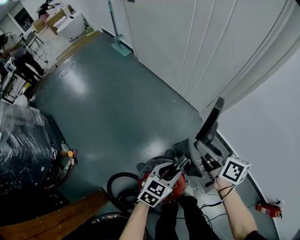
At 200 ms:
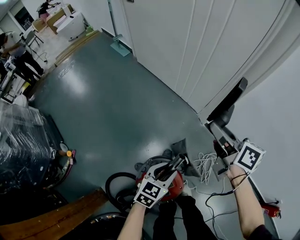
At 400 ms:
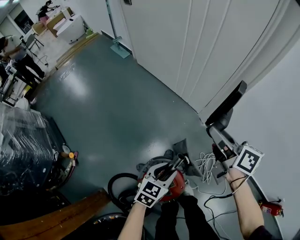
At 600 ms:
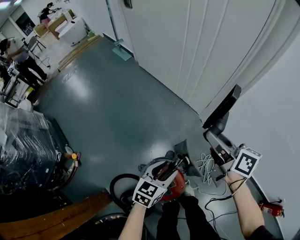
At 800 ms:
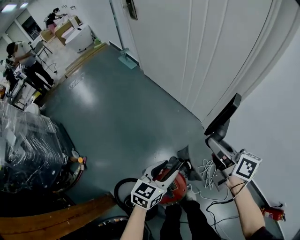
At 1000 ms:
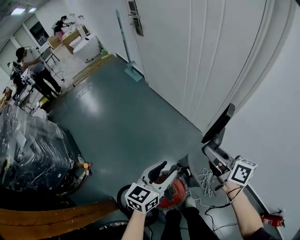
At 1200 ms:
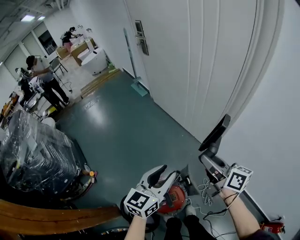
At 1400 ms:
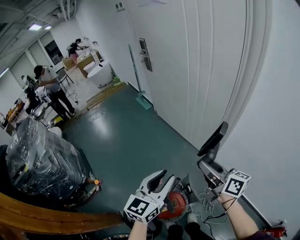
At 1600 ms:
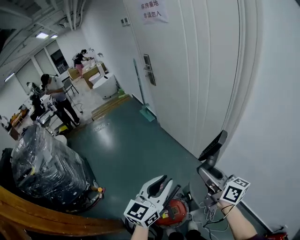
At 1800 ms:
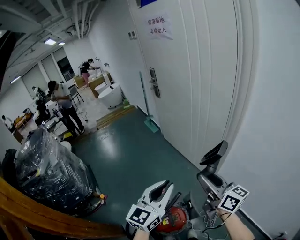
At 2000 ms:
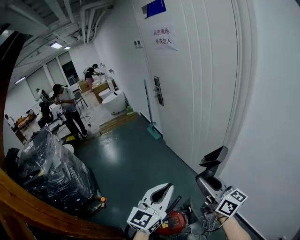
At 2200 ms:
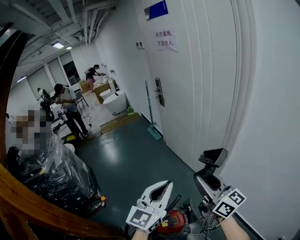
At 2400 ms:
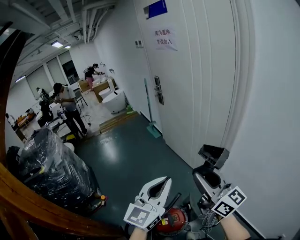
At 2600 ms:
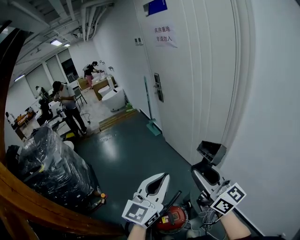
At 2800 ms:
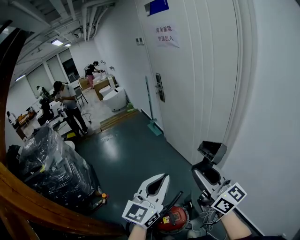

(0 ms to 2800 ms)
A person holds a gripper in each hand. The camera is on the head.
0 ms - 1400 ms: The two grippers go roughly 35 cm upward. The left gripper changes its angle by some 30 degrees.
1400 ms - 2800 ms: The right gripper shifts some 20 cm upward and backward, and changes its angle by roughly 30 degrees; the left gripper is displaced upward by approximately 15 cm, and closes its fingers.

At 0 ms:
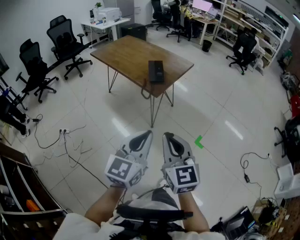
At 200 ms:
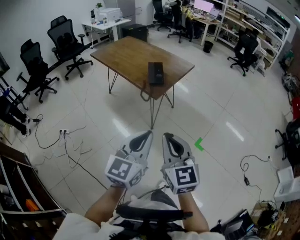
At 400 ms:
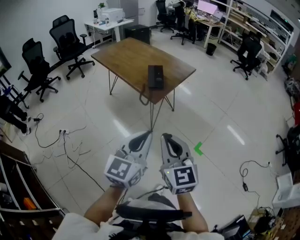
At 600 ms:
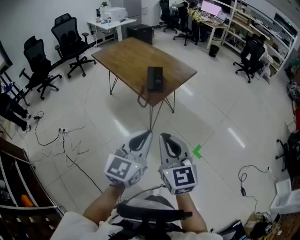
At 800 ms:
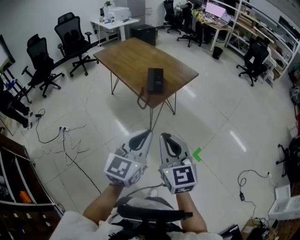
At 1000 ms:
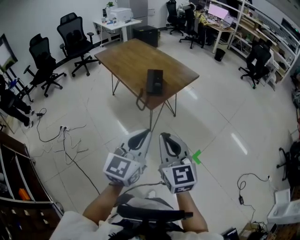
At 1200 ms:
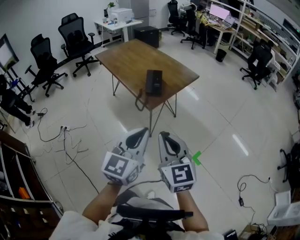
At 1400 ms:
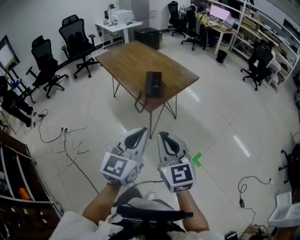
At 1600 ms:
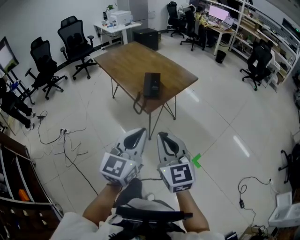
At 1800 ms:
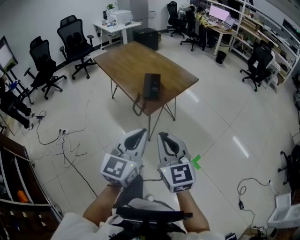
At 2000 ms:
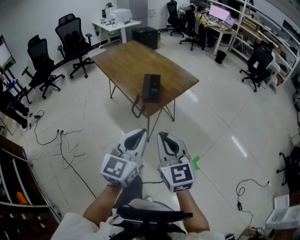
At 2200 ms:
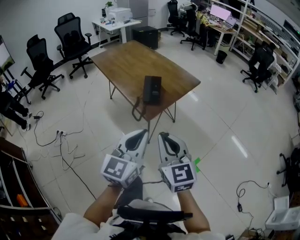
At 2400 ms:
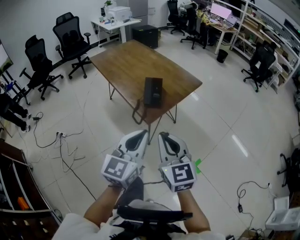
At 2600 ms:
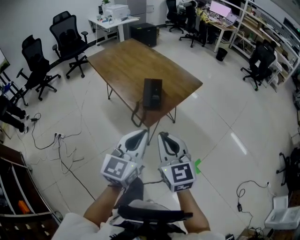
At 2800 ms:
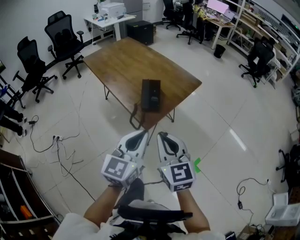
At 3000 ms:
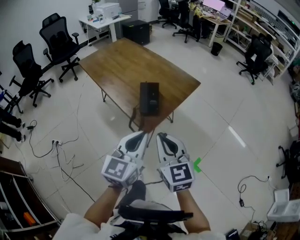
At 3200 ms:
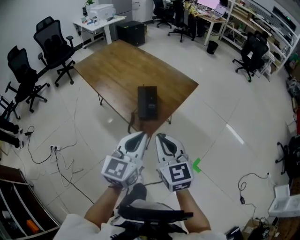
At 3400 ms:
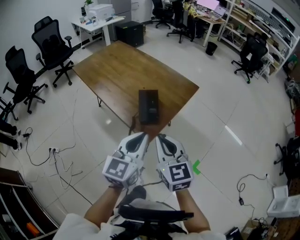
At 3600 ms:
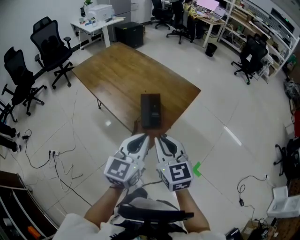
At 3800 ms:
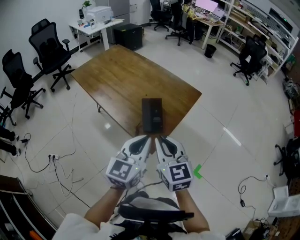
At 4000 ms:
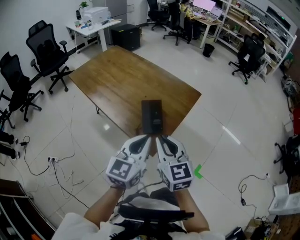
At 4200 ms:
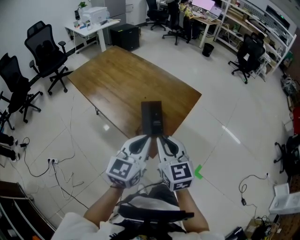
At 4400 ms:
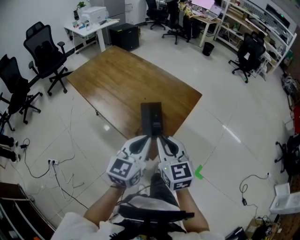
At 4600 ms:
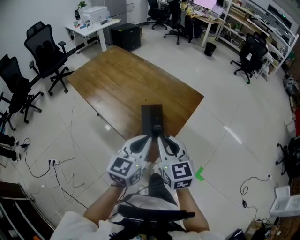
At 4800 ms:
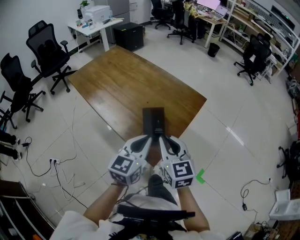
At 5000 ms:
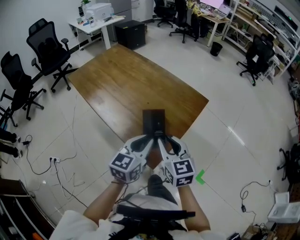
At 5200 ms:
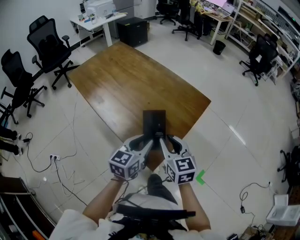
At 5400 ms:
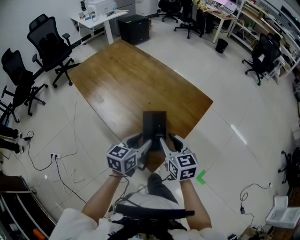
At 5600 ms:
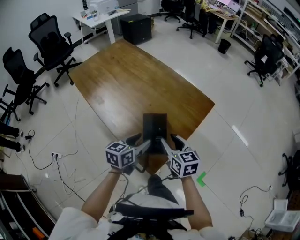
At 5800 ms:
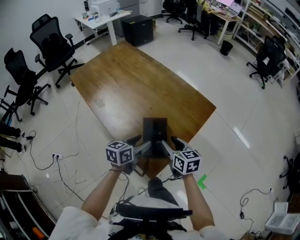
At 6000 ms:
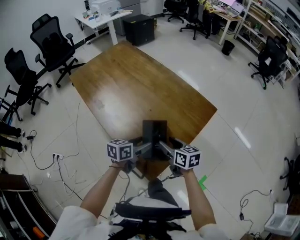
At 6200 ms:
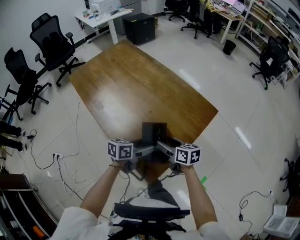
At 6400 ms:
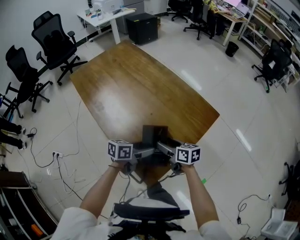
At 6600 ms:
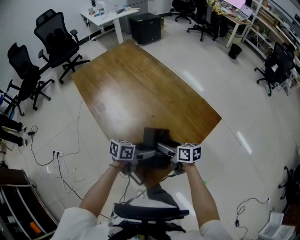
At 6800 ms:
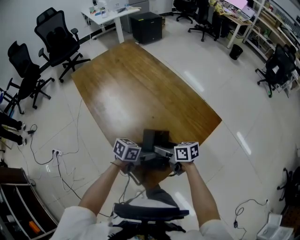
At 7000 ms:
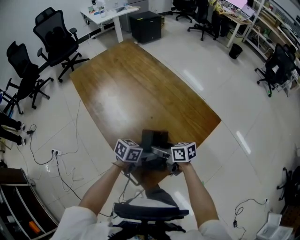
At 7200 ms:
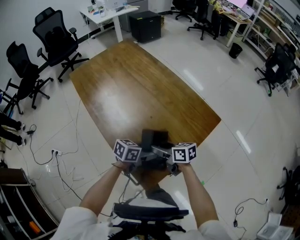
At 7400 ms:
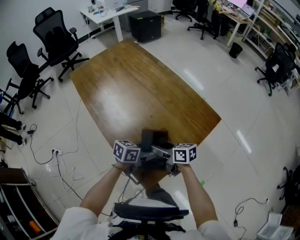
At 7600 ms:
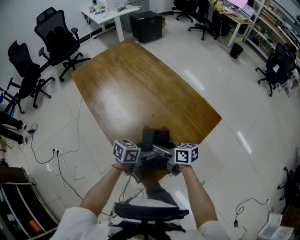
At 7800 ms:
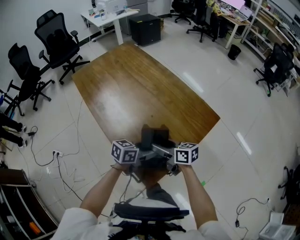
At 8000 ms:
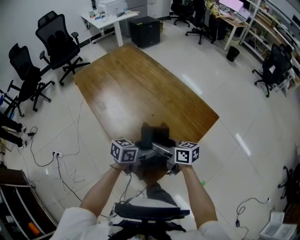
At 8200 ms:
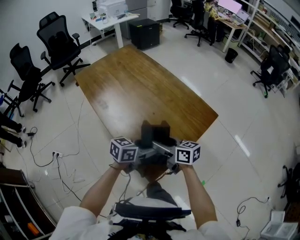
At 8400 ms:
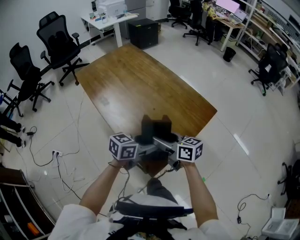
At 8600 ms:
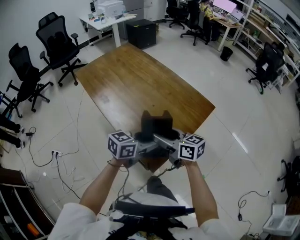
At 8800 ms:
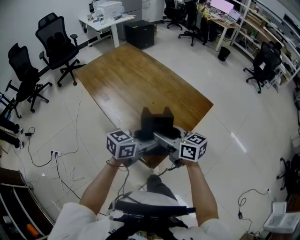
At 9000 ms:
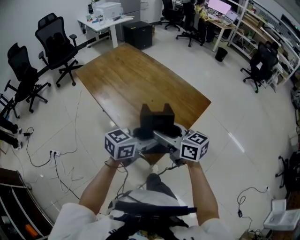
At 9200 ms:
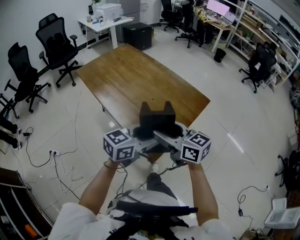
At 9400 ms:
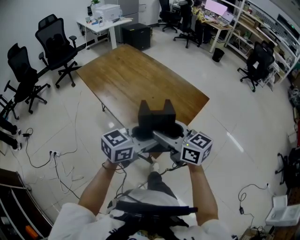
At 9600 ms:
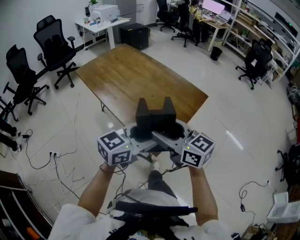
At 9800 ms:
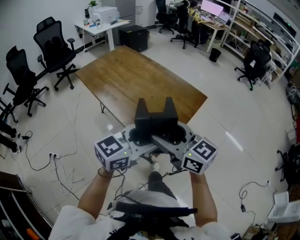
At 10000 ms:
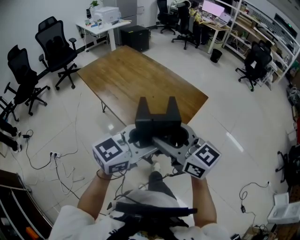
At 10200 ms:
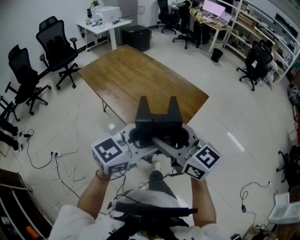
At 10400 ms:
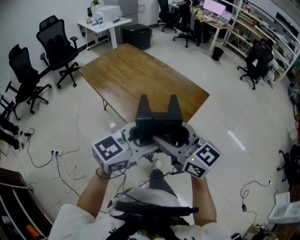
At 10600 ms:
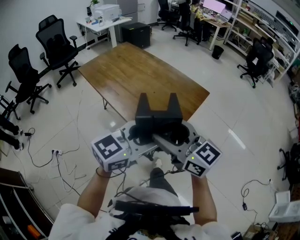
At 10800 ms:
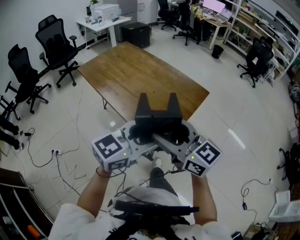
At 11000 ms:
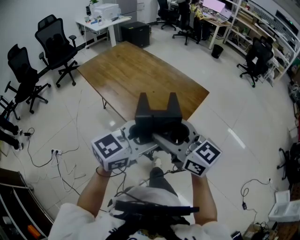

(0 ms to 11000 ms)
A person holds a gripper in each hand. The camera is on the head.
0 ms - 1600 ms: Both grippers move forward and to the right, roughly 15 cm.
1600 ms - 3200 ms: The grippers both shift forward by some 20 cm.
3200 ms - 4800 ms: Both grippers travel together forward, about 15 cm.
4800 ms - 6200 ms: Both grippers move downward and forward, some 20 cm. The left gripper changes its angle by some 40 degrees, and opens up. The right gripper rotates roughly 40 degrees, and opens its fingers.
6200 ms - 7800 ms: The right gripper ends up some 5 cm from where it was.
7800 ms - 9400 ms: Both grippers travel together upward and backward, about 25 cm. The left gripper rotates about 30 degrees, while the right gripper turns by approximately 30 degrees.
9400 ms - 11000 ms: The right gripper goes approximately 10 cm upward and backward; the left gripper is displaced backward and upward by some 10 cm.

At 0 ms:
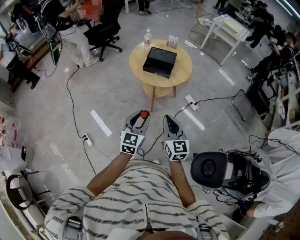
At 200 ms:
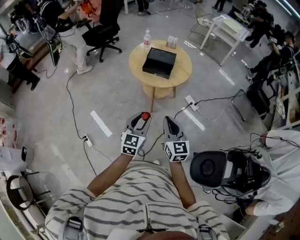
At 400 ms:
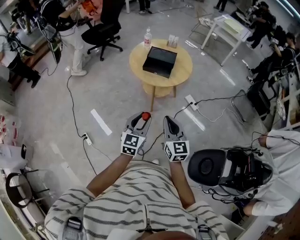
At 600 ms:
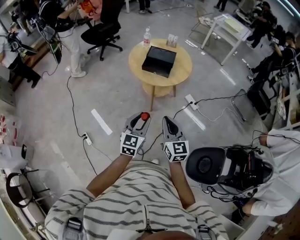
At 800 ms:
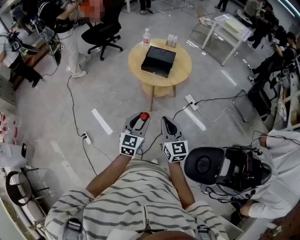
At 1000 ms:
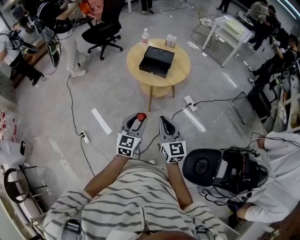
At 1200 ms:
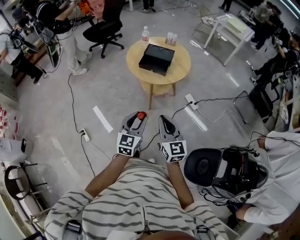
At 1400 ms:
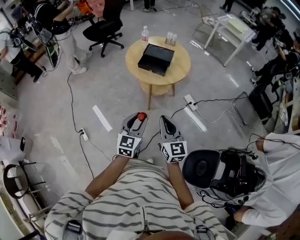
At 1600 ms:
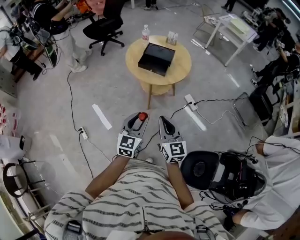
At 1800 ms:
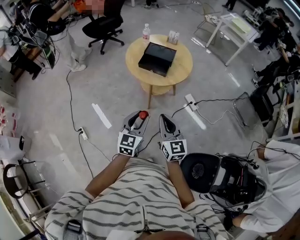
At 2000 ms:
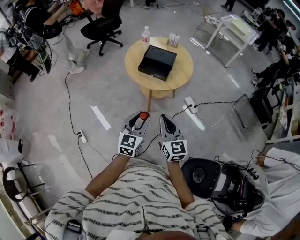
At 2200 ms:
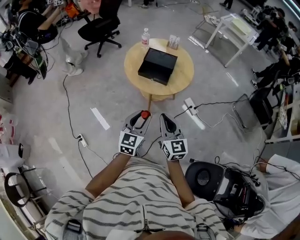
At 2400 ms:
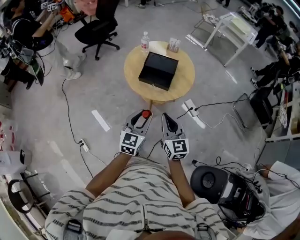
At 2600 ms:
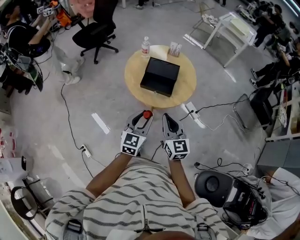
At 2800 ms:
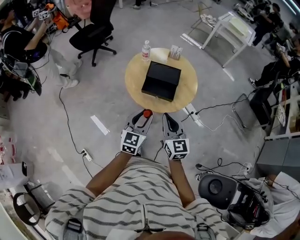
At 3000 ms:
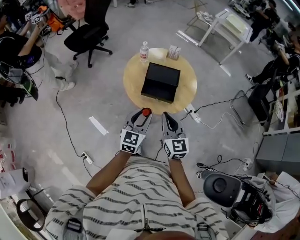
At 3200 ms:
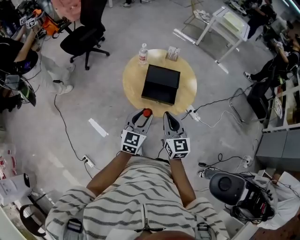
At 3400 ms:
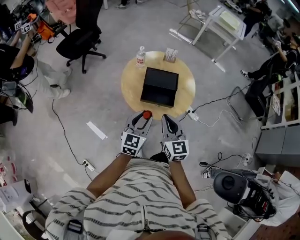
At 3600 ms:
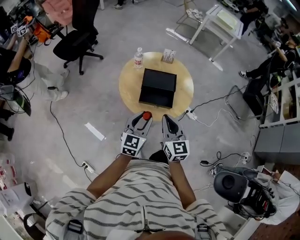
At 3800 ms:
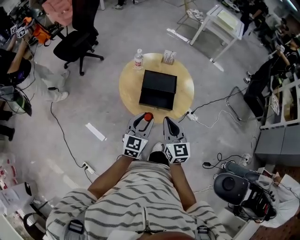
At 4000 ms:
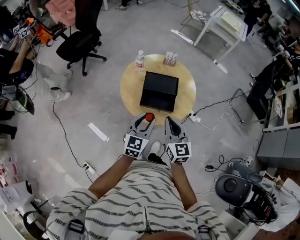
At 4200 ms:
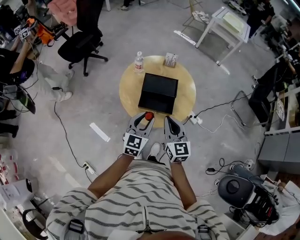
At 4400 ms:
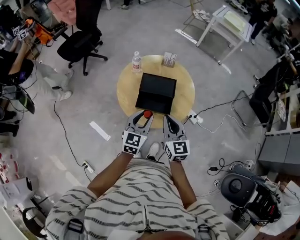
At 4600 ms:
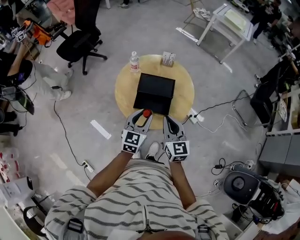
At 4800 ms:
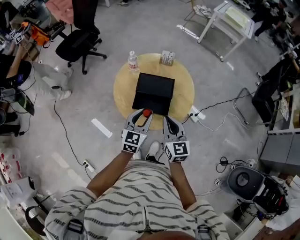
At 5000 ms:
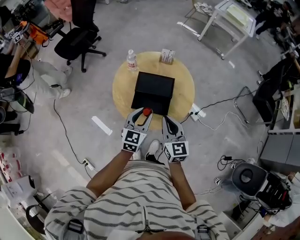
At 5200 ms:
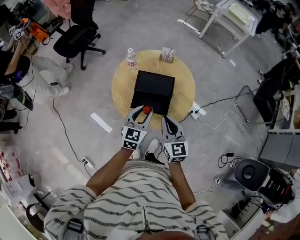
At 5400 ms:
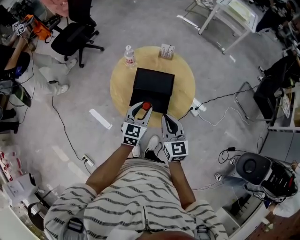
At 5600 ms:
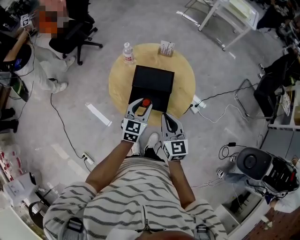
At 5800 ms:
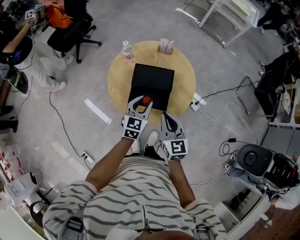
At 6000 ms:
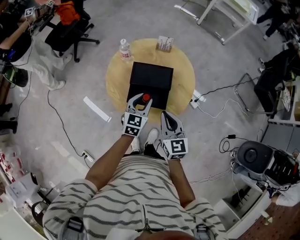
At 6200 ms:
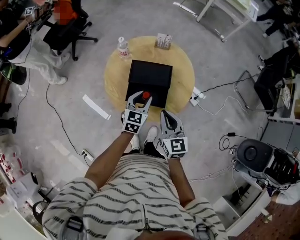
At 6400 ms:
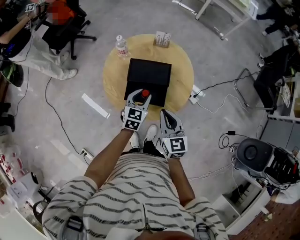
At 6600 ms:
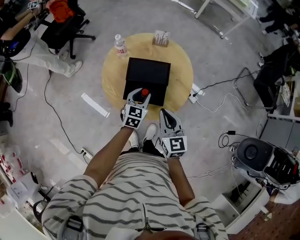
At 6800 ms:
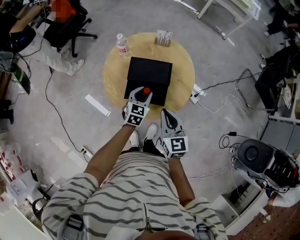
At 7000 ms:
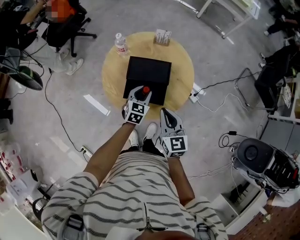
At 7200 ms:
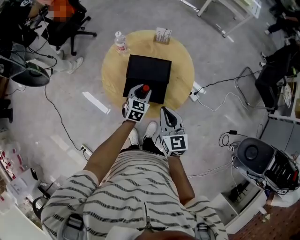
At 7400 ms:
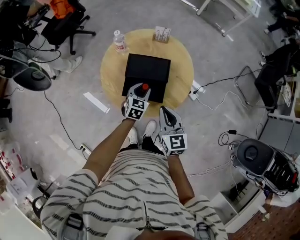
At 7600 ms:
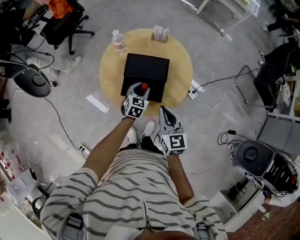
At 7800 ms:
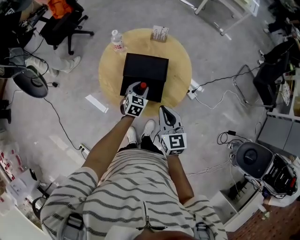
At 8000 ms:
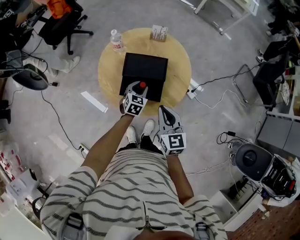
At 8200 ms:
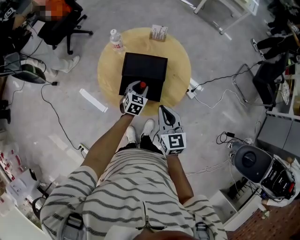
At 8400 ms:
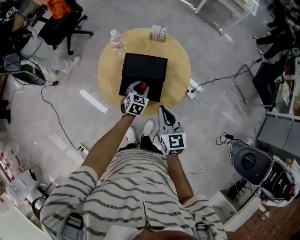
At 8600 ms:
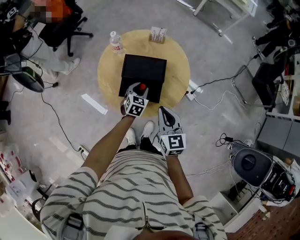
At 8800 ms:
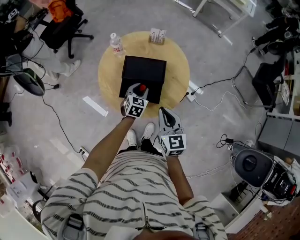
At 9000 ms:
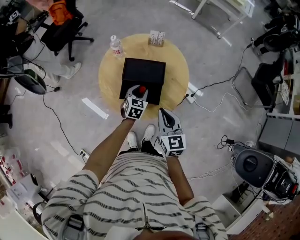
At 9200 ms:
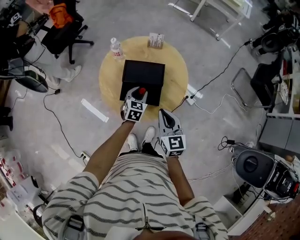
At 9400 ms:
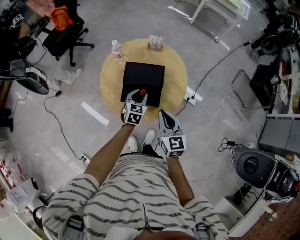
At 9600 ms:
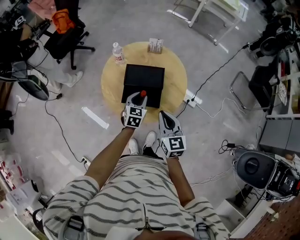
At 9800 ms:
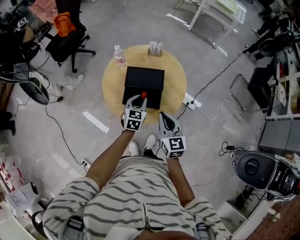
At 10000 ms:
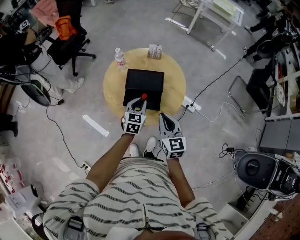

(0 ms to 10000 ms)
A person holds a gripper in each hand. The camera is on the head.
0 ms - 1400 ms: The two grippers go about 5 cm to the right.
1400 ms - 2800 ms: Both grippers travel together forward, approximately 25 cm.
2800 ms - 4200 ms: Both grippers travel together forward, approximately 10 cm.
4200 ms - 5800 ms: The right gripper heads forward and downward, covering about 10 cm; the left gripper heads forward and downward, covering about 15 cm.
5800 ms - 7200 ms: The left gripper shifts about 10 cm downward.
7200 ms - 8600 ms: The grippers move only a little.
8600 ms - 10000 ms: The left gripper heads upward and backward, covering about 10 cm.
